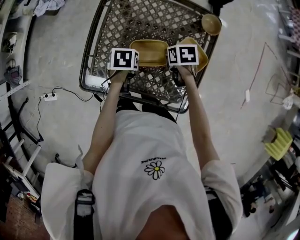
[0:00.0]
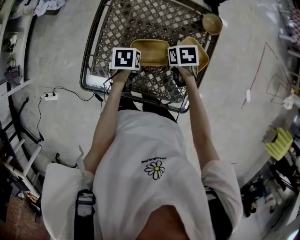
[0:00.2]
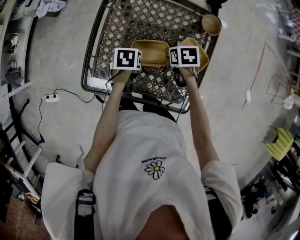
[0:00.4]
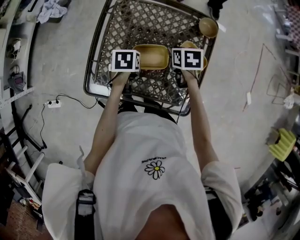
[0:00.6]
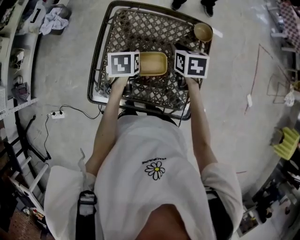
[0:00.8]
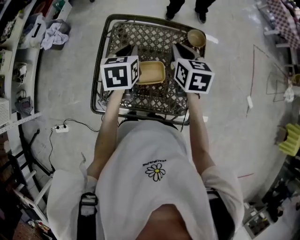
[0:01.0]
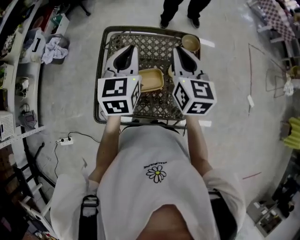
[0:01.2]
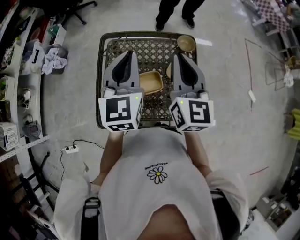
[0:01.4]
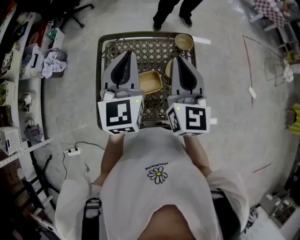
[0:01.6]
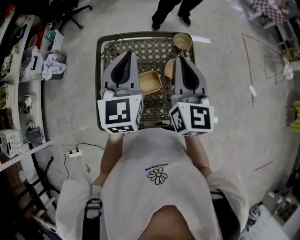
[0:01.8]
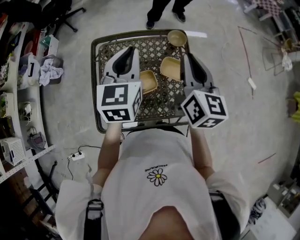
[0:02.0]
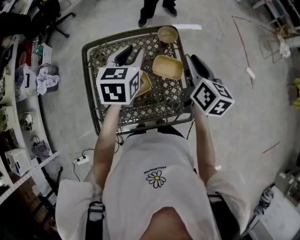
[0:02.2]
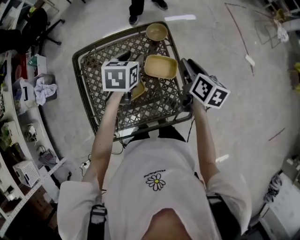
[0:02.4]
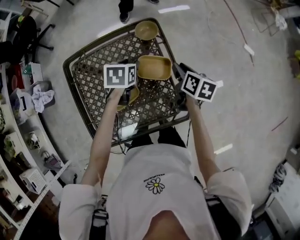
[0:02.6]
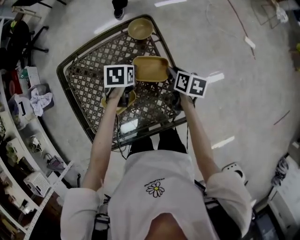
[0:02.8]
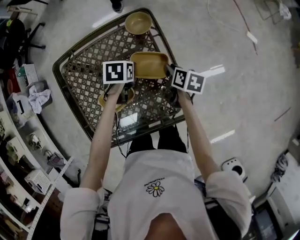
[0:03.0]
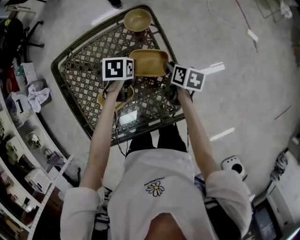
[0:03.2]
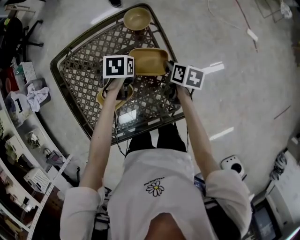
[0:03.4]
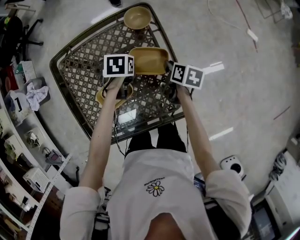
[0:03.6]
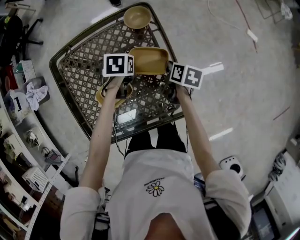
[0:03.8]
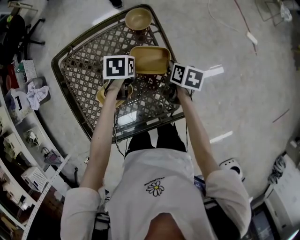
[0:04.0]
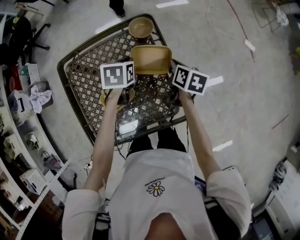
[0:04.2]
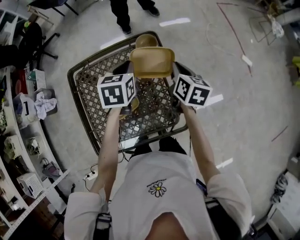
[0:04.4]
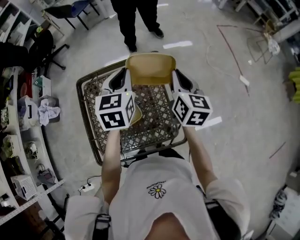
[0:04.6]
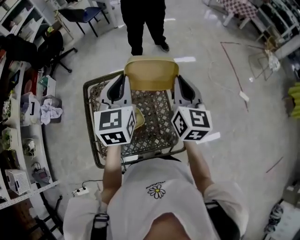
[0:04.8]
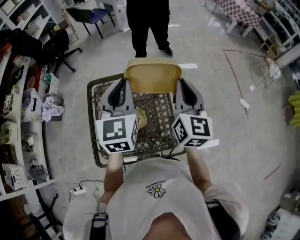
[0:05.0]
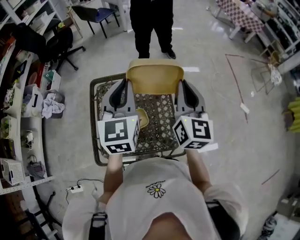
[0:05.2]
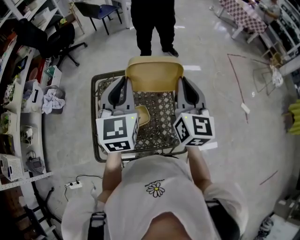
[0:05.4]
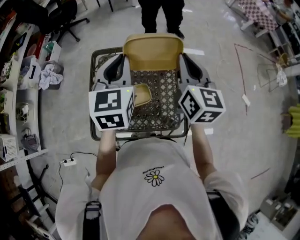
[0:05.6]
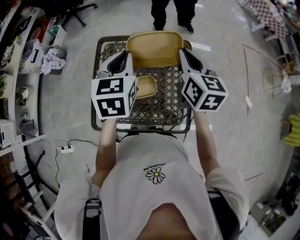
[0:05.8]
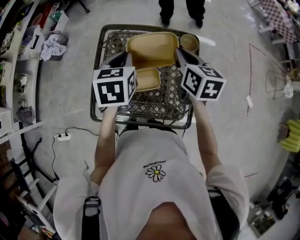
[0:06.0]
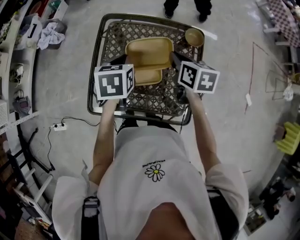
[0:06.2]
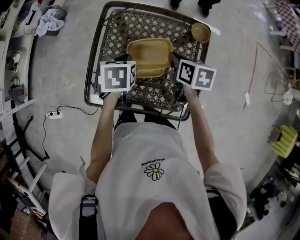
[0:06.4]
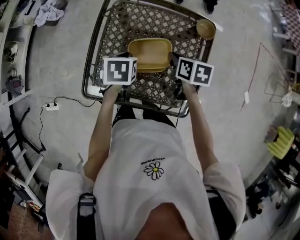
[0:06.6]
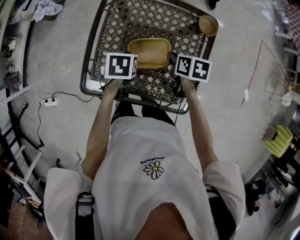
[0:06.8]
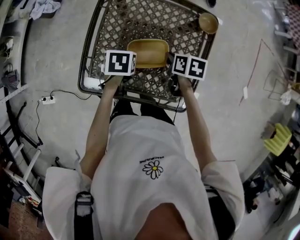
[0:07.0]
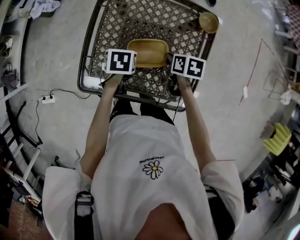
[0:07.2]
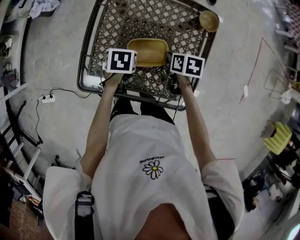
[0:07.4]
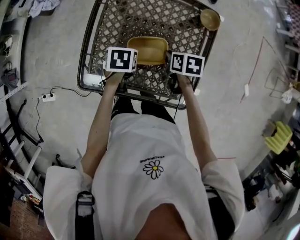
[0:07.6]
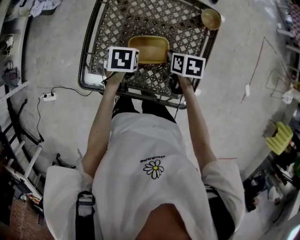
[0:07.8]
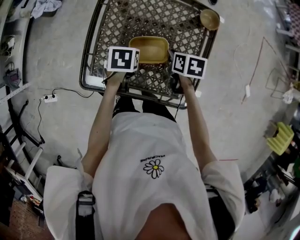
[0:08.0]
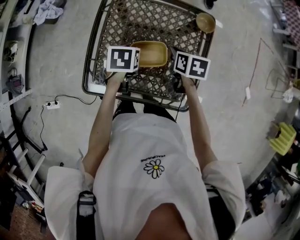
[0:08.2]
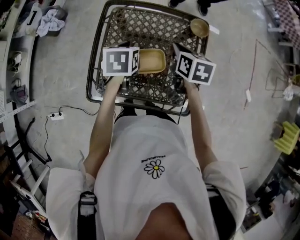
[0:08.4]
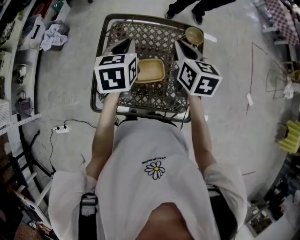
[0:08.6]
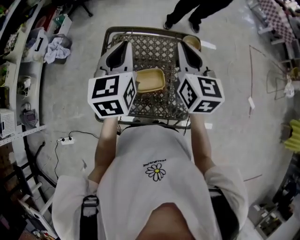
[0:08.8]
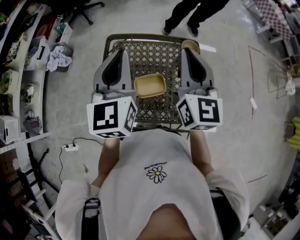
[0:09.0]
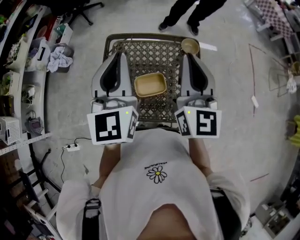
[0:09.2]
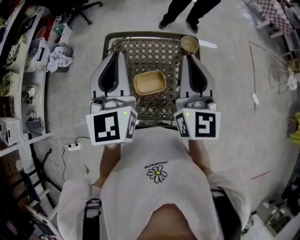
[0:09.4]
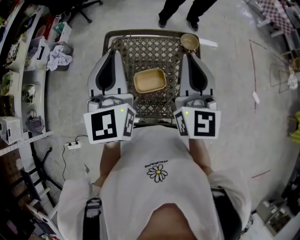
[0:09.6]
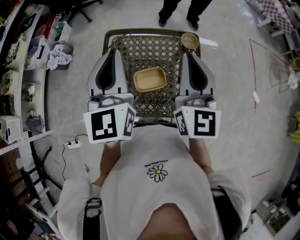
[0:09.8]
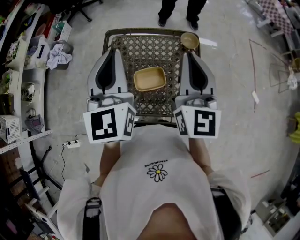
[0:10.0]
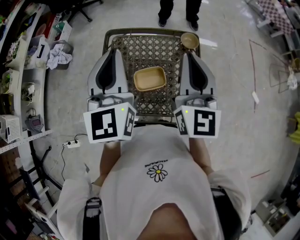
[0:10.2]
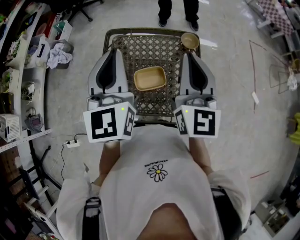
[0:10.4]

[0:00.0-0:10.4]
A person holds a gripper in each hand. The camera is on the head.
0:00.0 to 0:01.4: The grippers both shift upward by approximately 40 cm. The left gripper points its fingers about 60 degrees further upward, and opens and closes again, while the right gripper tilts its fingers roughly 70 degrees upward.
0:01.4 to 0:03.0: The grippers both shift downward and to the right by about 40 cm. The right gripper angles its fingers downward, by about 50 degrees; the left gripper tips its fingers downward by some 60 degrees, and opens its fingers.
0:03.0 to 0:04.4: The grippers both shift upward by about 20 cm. The right gripper rotates approximately 30 degrees; the left gripper changes its angle by some 30 degrees, and closes its fingers.
0:04.4 to 0:06.0: The left gripper moves approximately 25 cm upward and comes back, and turns by roughly 20 degrees, while the right gripper moves roughly 20 cm, and rotates approximately 30 degrees.
0:06.0 to 0:07.4: The two grippers go some 25 cm downward. The left gripper points its fingers approximately 30 degrees further downward, while the right gripper angles its fingers downward, by some 30 degrees.
0:07.4 to 0:09.0: Both grippers travel together upward, about 40 cm. The left gripper tilts its fingers about 70 degrees upward; the right gripper angles its fingers upward, by about 60 degrees.
0:09.0 to 0:10.4: The grippers move only a little.

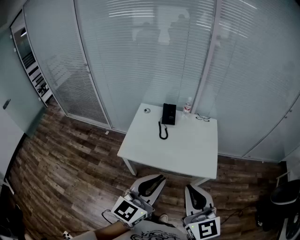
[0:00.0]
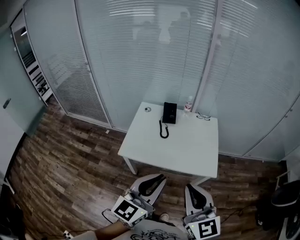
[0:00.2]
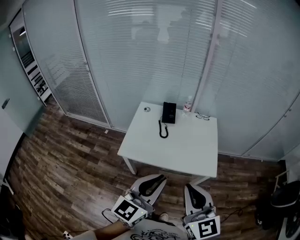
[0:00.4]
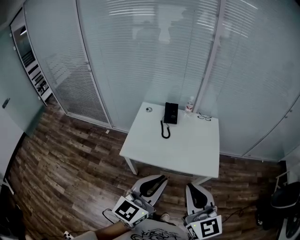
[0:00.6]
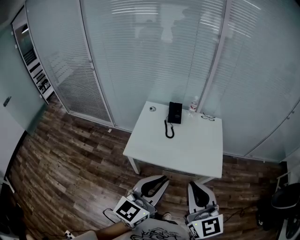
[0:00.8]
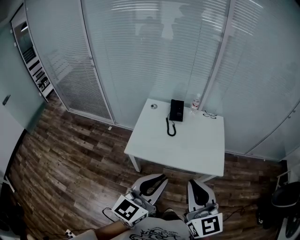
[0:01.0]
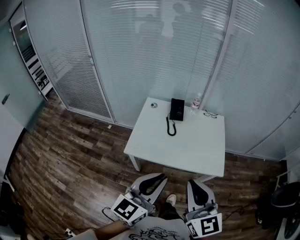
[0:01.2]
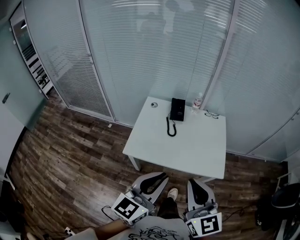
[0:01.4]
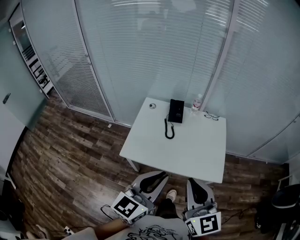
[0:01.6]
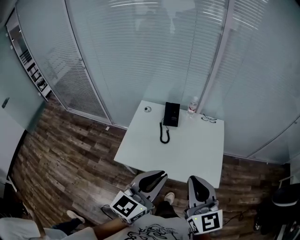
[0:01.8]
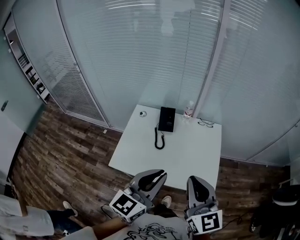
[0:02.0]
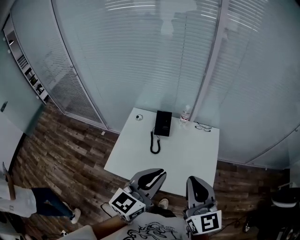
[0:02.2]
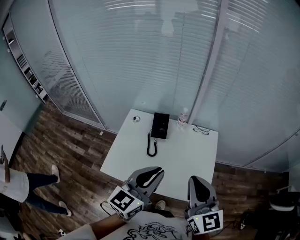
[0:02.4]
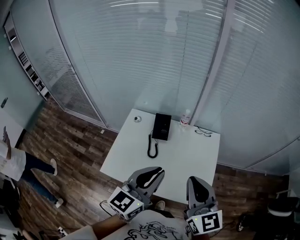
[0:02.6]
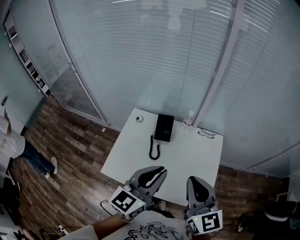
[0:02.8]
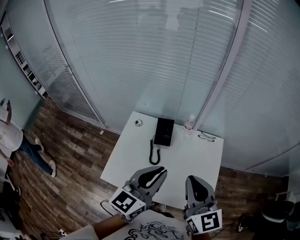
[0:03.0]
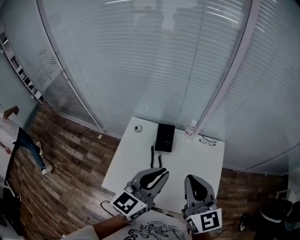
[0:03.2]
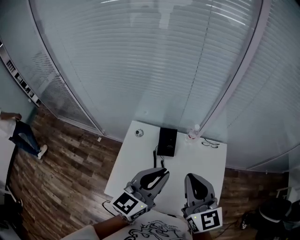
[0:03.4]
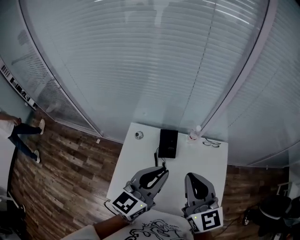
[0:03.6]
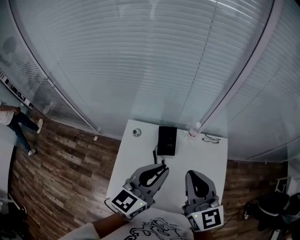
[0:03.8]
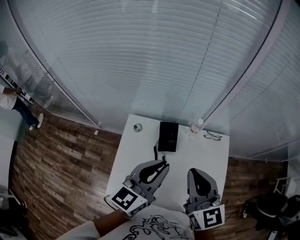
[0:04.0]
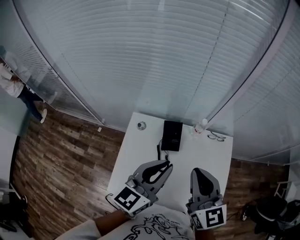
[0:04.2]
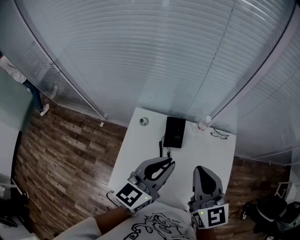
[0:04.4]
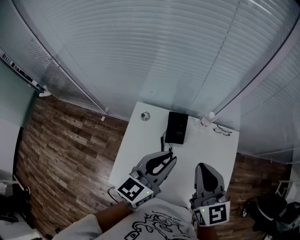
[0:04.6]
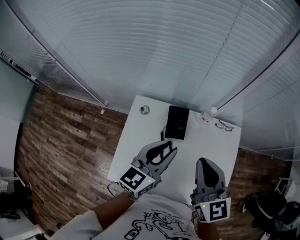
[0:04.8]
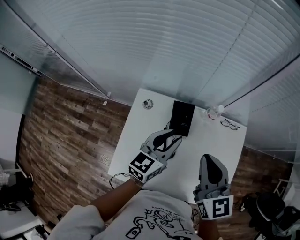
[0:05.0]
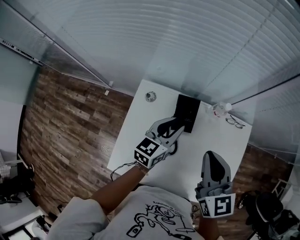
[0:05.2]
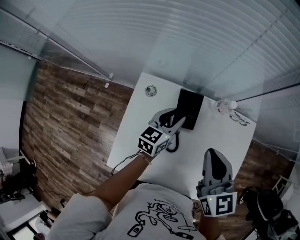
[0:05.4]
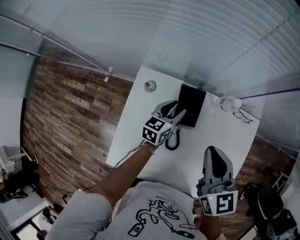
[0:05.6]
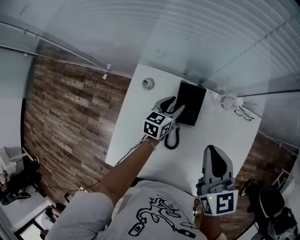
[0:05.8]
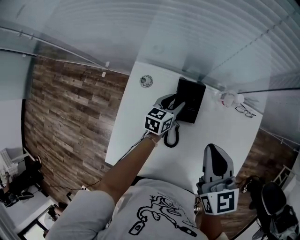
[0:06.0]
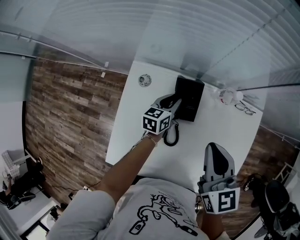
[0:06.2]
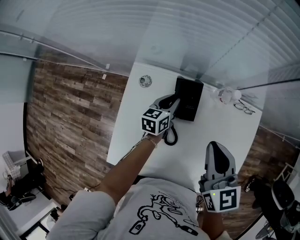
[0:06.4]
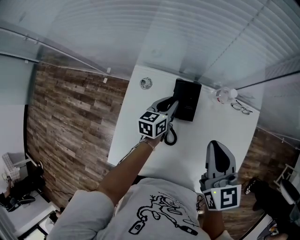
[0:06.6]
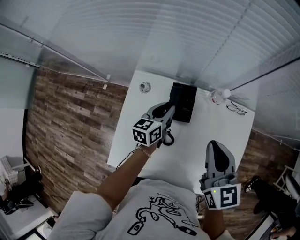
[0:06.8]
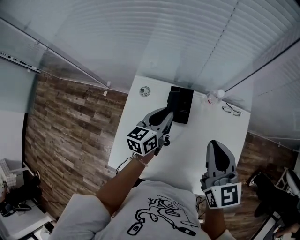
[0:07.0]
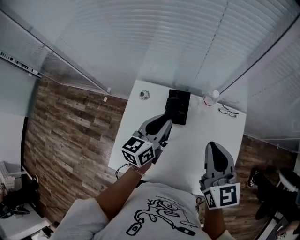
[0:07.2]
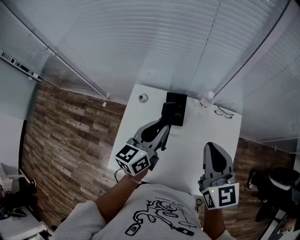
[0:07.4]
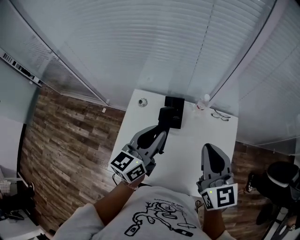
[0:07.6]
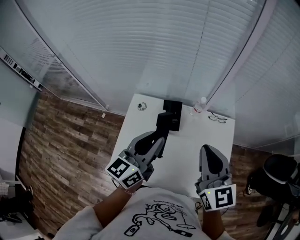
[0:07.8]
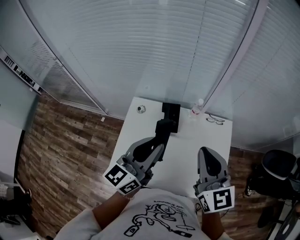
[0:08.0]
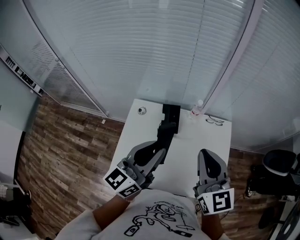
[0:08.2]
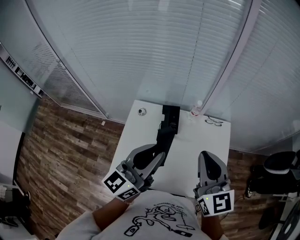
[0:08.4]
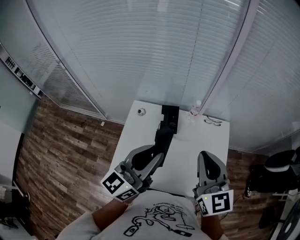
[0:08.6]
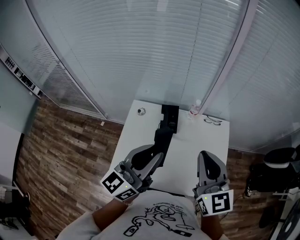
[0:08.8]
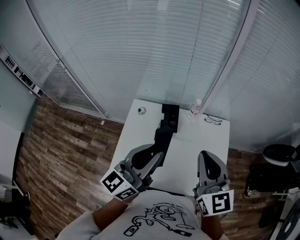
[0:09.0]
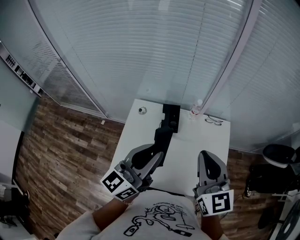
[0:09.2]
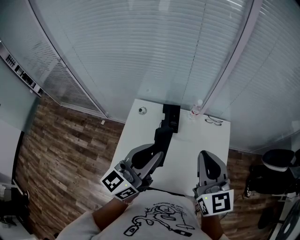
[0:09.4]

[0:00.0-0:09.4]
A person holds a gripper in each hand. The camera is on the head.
0:00.0 to 0:01.6: Both grippers move forward, roughly 10 cm.
0:01.6 to 0:03.2: The two grippers go about 30 cm forward.
0:03.2 to 0:04.8: Both grippers move forward, downward and to the left, about 15 cm.
0:04.8 to 0:06.2: The right gripper shifts some 15 cm downward and forward; the left gripper goes roughly 35 cm downward and forward, rotates about 30 degrees, and opens, then closes again.
0:06.2 to 0:07.8: The right gripper heads upward and backward, covering roughly 20 cm; the left gripper is displaced upward and backward by roughly 40 cm, and angles its fingers upward, by some 30 degrees.
0:07.8 to 0:09.4: The right gripper is displaced backward by approximately 5 cm. The left gripper is displaced backward and upward by approximately 10 cm.

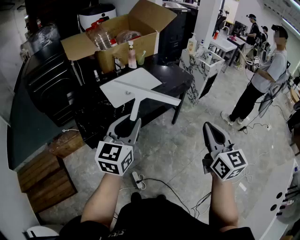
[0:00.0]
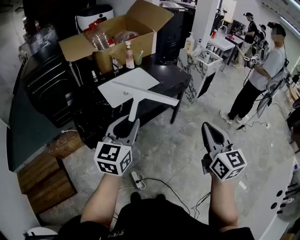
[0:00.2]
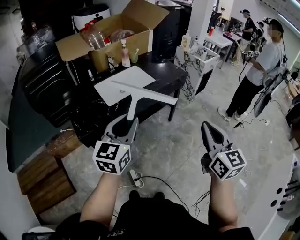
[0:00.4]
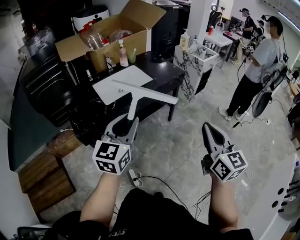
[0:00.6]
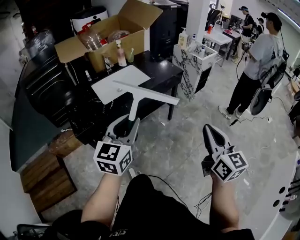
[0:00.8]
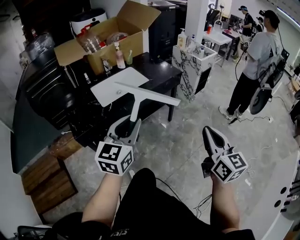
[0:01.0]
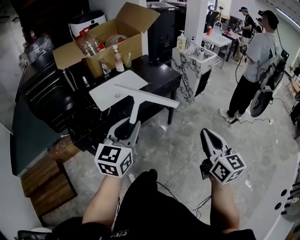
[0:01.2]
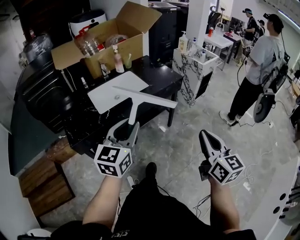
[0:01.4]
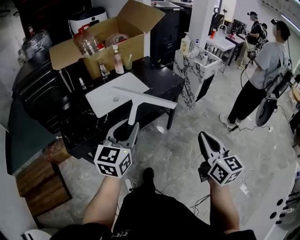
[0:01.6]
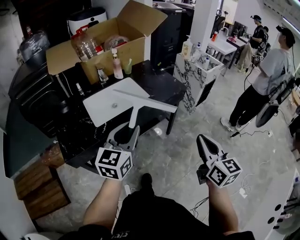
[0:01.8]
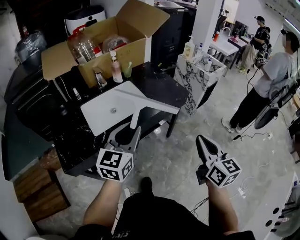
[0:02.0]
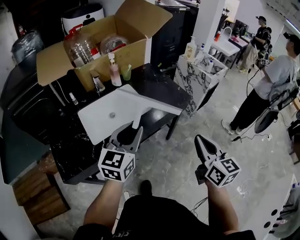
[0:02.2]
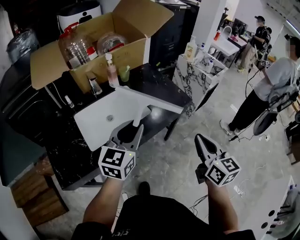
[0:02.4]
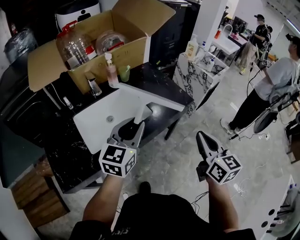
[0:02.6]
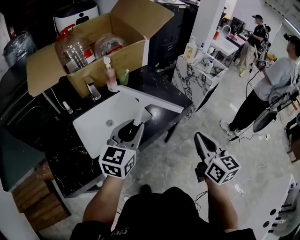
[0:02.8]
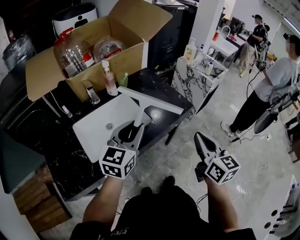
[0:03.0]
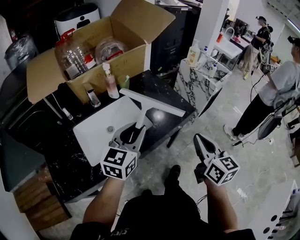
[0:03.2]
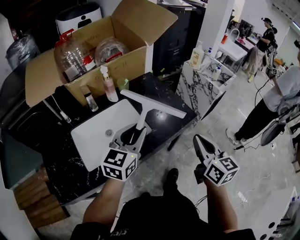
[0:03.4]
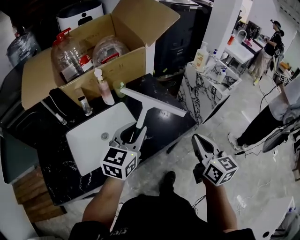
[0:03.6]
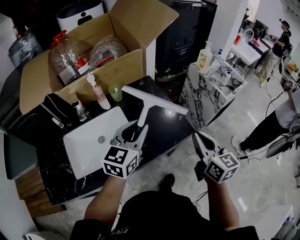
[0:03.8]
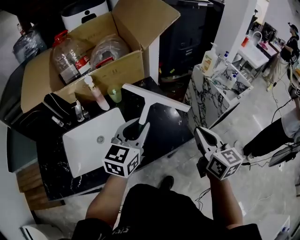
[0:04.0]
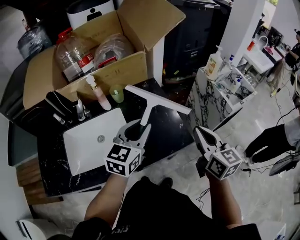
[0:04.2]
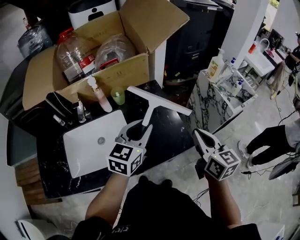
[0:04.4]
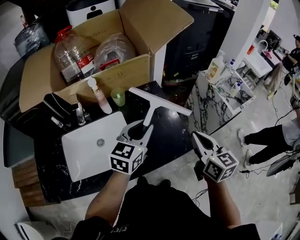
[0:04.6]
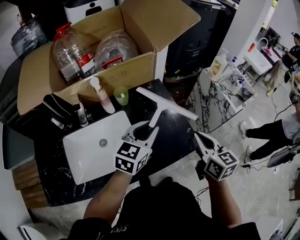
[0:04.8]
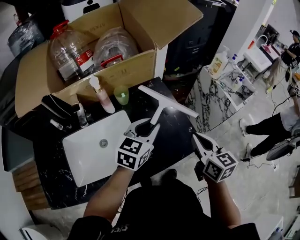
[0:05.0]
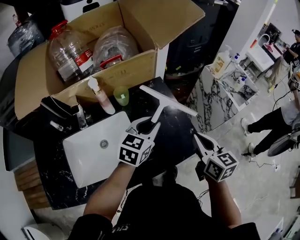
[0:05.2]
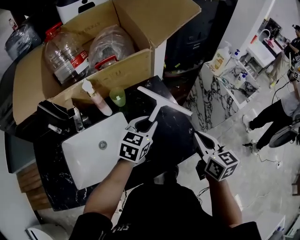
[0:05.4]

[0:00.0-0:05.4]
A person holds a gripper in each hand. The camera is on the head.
0:00.0 to 0:01.4: The right gripper goes approximately 10 cm to the right and downward, while the left gripper is displaced to the right by roughly 10 cm.
0:01.4 to 0:02.8: Both grippers travel together forward, roughly 30 cm.
0:02.8 to 0:04.0: The right gripper heads forward, covering some 30 cm; the left gripper goes roughly 25 cm forward and to the right.
0:04.0 to 0:05.4: The right gripper is displaced forward, downward and to the left by some 10 cm; the left gripper heads downward and forward, covering approximately 15 cm.
